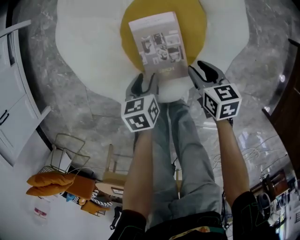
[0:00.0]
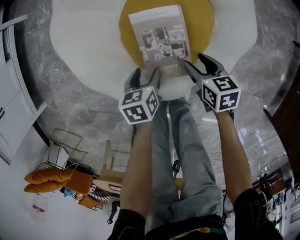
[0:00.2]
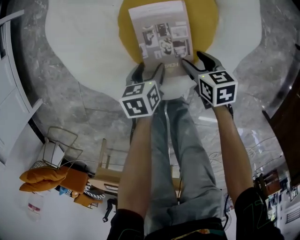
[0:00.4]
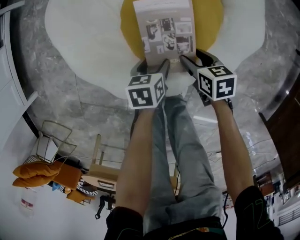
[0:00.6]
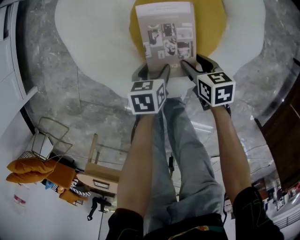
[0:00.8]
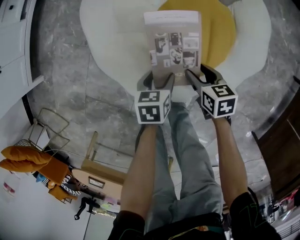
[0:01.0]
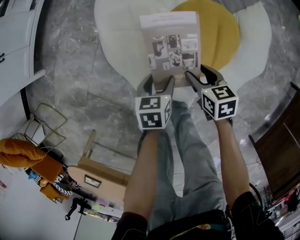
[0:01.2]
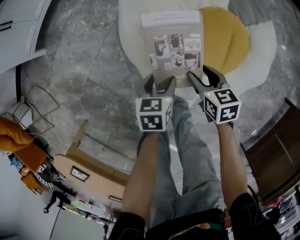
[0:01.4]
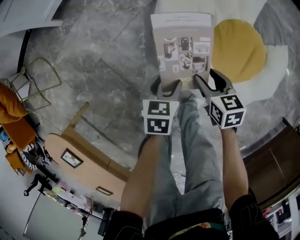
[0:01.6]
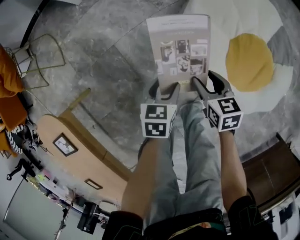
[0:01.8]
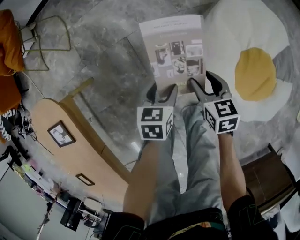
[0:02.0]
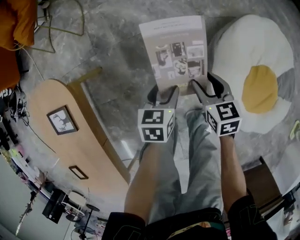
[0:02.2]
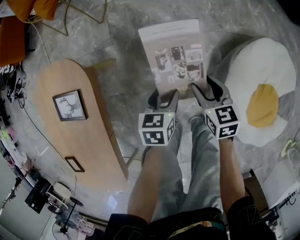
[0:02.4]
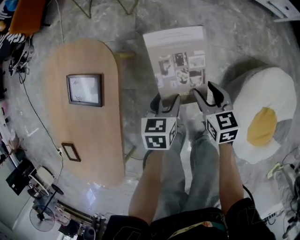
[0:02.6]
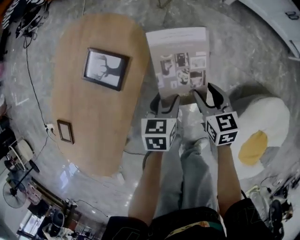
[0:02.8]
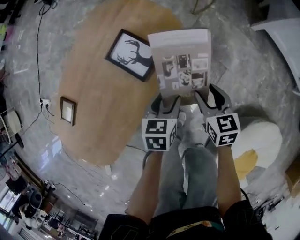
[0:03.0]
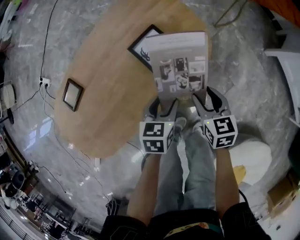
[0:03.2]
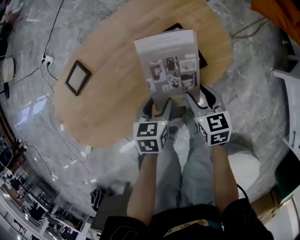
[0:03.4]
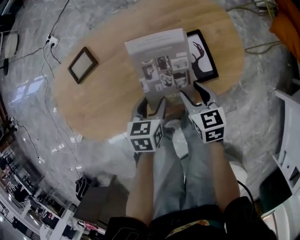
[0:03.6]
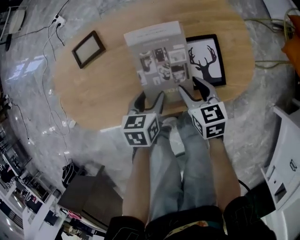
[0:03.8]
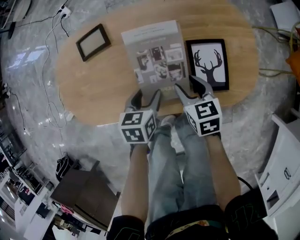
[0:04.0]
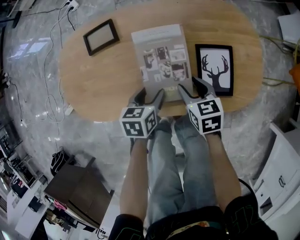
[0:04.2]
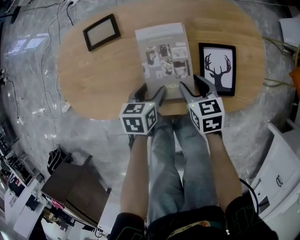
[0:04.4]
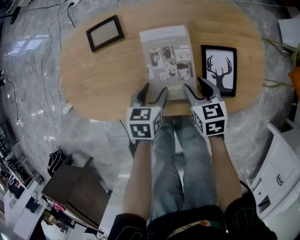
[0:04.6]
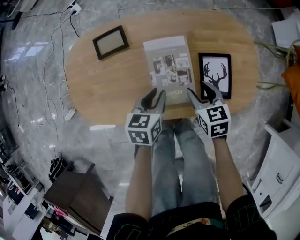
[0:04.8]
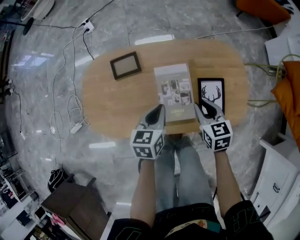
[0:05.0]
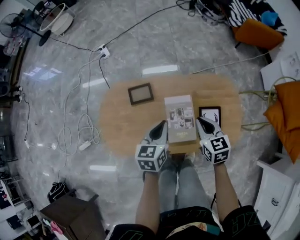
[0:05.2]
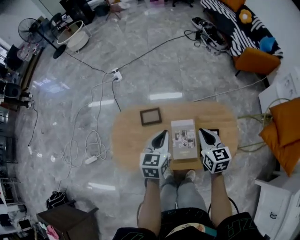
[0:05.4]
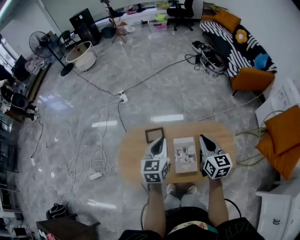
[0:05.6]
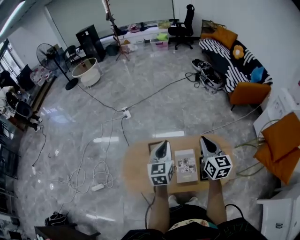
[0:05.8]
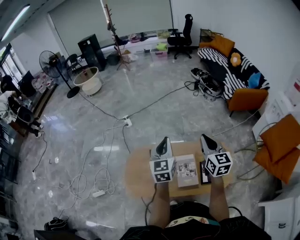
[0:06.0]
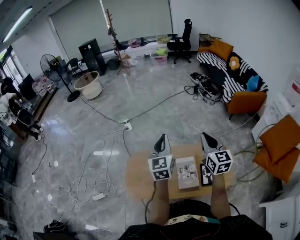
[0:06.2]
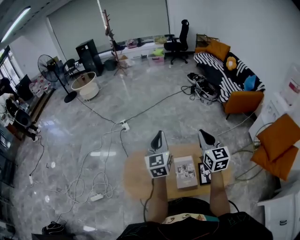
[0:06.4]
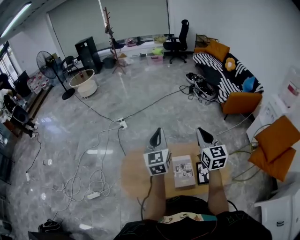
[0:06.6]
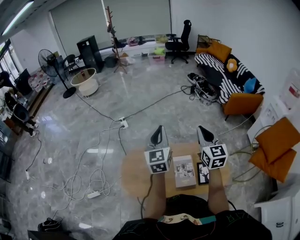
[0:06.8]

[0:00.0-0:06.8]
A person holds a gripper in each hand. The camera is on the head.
0.0 to 1.4 s: The left gripper shifts roughly 10 cm to the left and upward. Meanwhile the right gripper is displaced to the left by approximately 15 cm, and changes its angle by some 30 degrees.
1.4 to 2.8 s: The right gripper swivels approximately 20 degrees; the left gripper turns by roughly 20 degrees.
2.8 to 4.0 s: The right gripper moves about 15 cm, and swivels approximately 30 degrees; the left gripper ends up roughly 15 cm from where it was, and changes its angle by some 30 degrees.
4.0 to 5.4 s: Both grippers travel together upward, some 30 cm. The right gripper closes. The left gripper turns by roughly 30 degrees, and closes up.
5.4 to 6.8 s: The two grippers go roughly 25 cm upward. The right gripper rotates roughly 30 degrees; the left gripper rotates about 30 degrees.

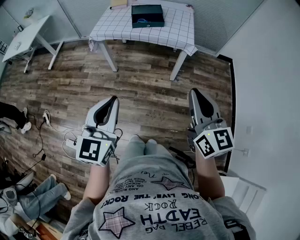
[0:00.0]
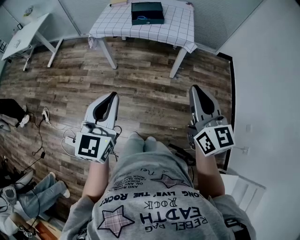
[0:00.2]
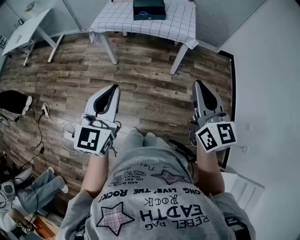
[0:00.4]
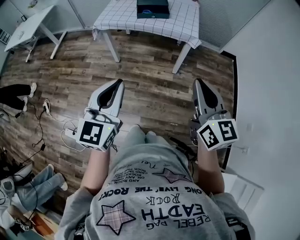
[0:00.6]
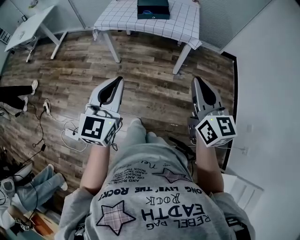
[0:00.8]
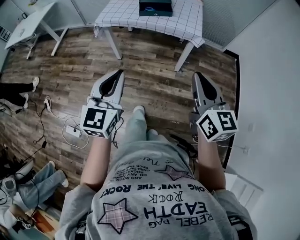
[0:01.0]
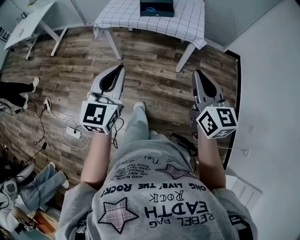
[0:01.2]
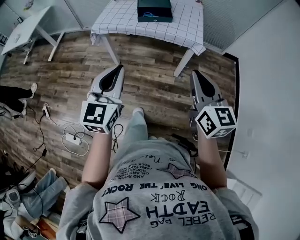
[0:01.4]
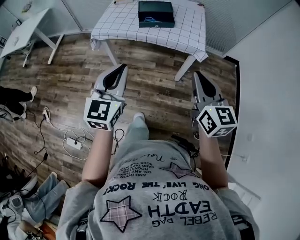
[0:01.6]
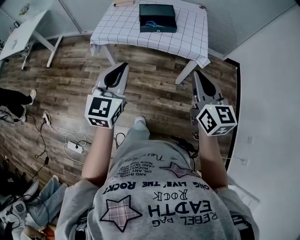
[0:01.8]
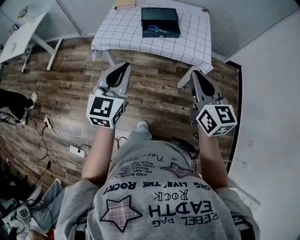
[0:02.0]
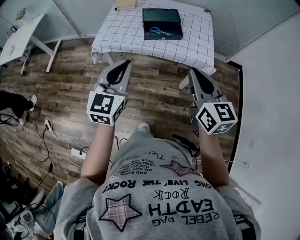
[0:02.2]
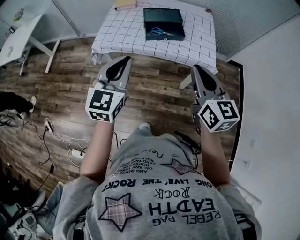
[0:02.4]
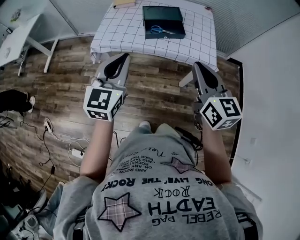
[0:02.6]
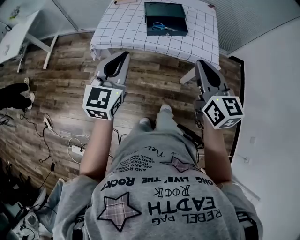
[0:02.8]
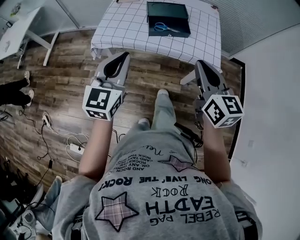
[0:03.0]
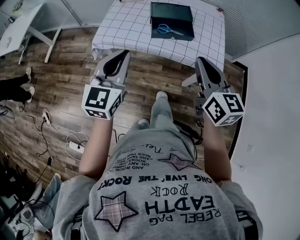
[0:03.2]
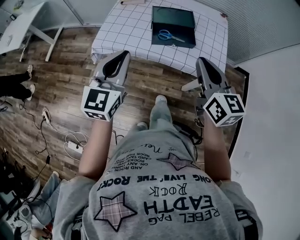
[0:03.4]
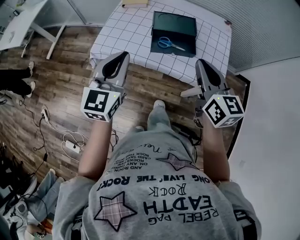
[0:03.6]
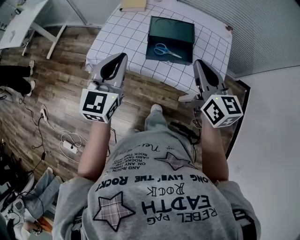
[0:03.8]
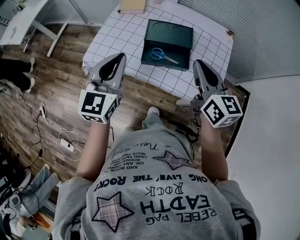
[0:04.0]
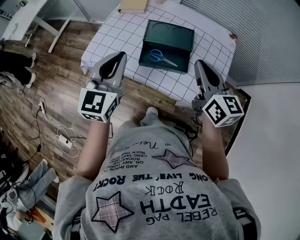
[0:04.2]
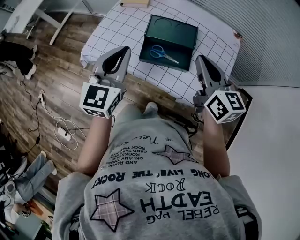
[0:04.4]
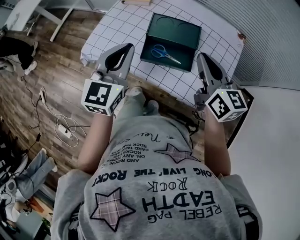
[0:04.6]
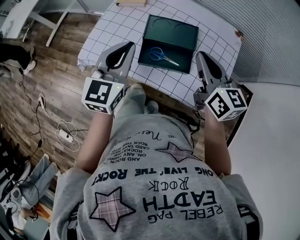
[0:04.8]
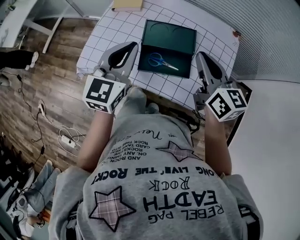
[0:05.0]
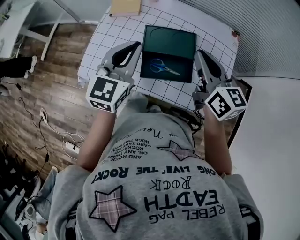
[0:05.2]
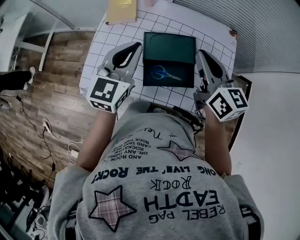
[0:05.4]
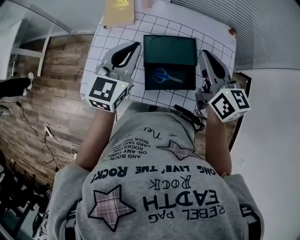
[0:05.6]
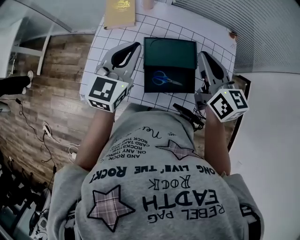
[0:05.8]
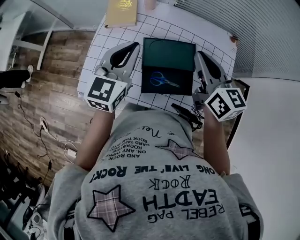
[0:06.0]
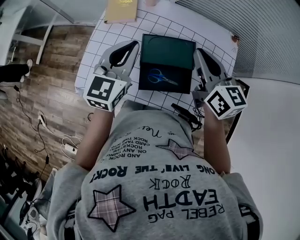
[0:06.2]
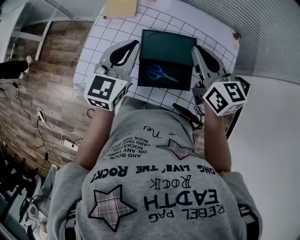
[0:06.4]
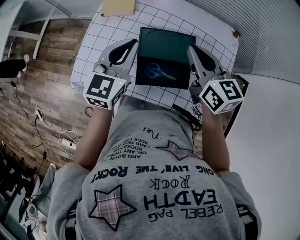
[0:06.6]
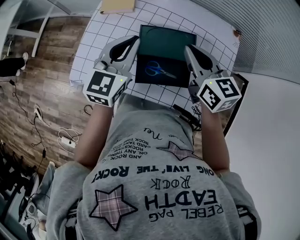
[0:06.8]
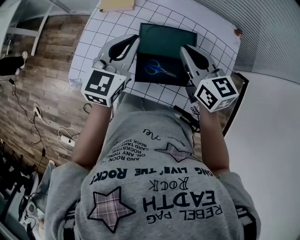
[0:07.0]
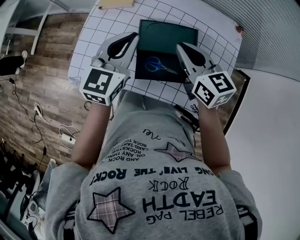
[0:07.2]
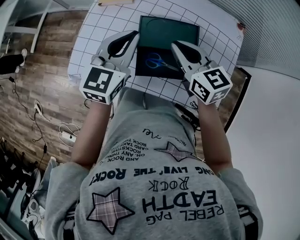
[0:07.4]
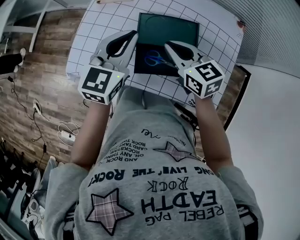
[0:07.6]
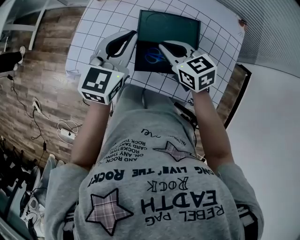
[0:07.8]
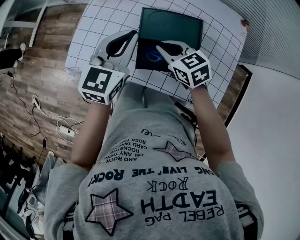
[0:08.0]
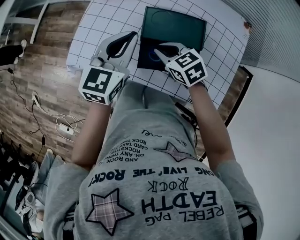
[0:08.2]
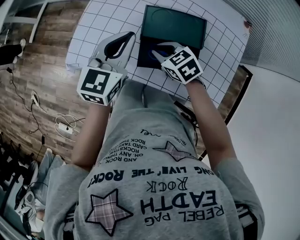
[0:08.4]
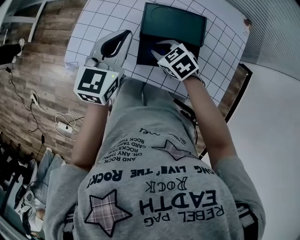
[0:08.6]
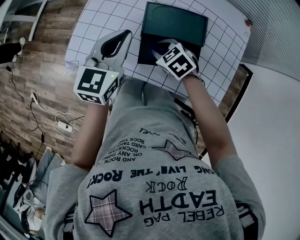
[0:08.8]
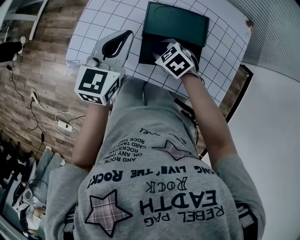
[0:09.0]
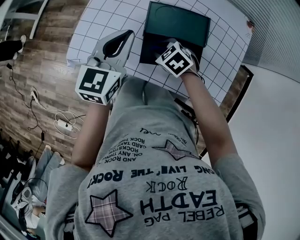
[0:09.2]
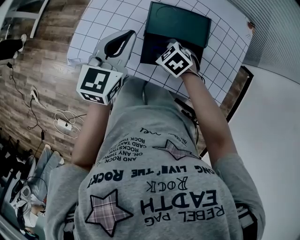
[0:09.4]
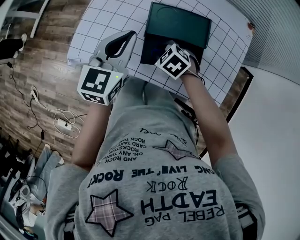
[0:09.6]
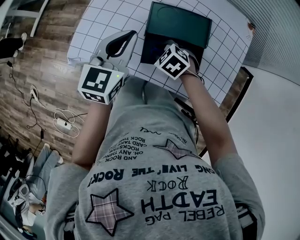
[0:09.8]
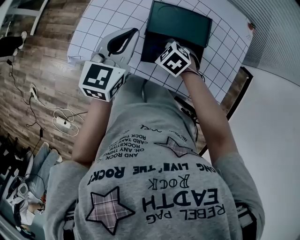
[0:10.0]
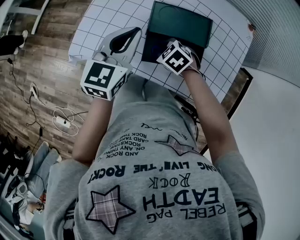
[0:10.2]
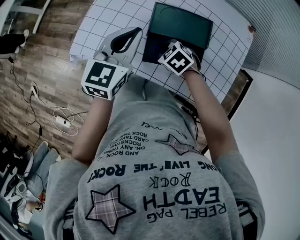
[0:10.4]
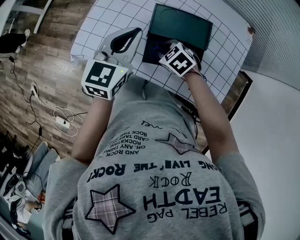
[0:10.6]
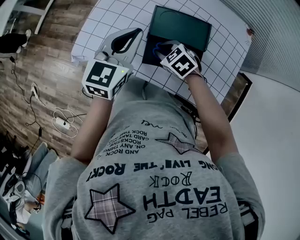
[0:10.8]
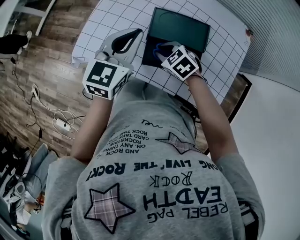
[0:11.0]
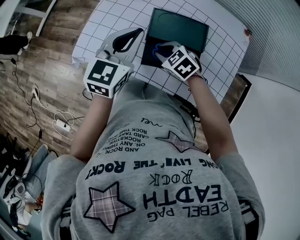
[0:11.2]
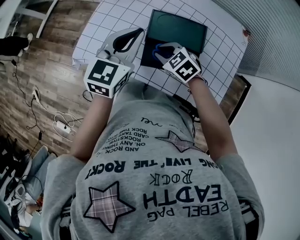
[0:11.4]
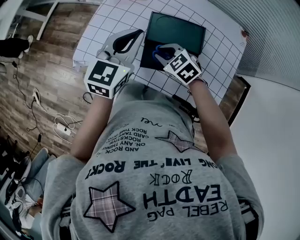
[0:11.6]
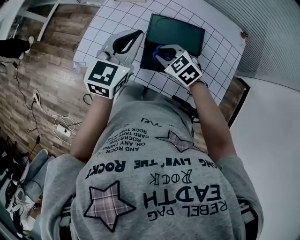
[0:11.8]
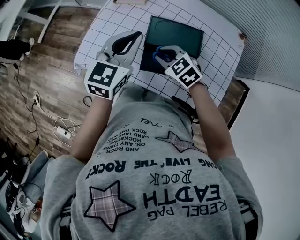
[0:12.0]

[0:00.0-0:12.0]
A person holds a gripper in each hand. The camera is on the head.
0.0 to 1.6 s: Both grippers move forward, about 20 cm.
1.6 to 3.0 s: Both grippers travel together forward and to the left, roughly 20 cm.
3.0 to 4.4 s: Both grippers move forward, about 25 cm.
4.4 to 6.0 s: The grippers both shift forward by roughly 15 cm.
6.0 to 7.6 s: The left gripper changes place by about 5 cm, while the right gripper shifts roughly 15 cm downward and to the left, and changes its angle by roughly 30 degrees.
7.6 to 9.0 s: The right gripper is displaced downward and to the left by about 15 cm, angles its fingers downward, by about 30 degrees, and opens up; the left gripper changes place by approximately 5 cm.
9.0 to 10.4 s: There are only small adjustments of the grippers.
10.4 to 12.0 s: The right gripper is displaced upward by roughly 10 cm.

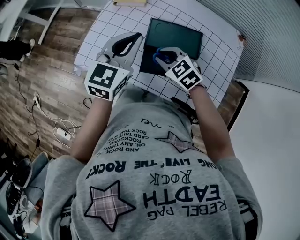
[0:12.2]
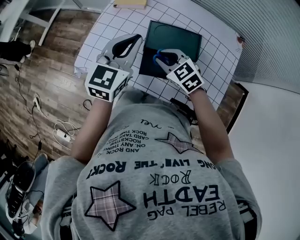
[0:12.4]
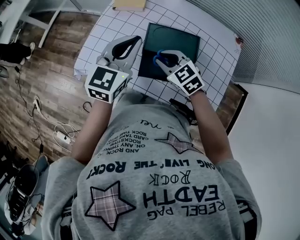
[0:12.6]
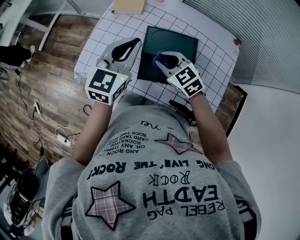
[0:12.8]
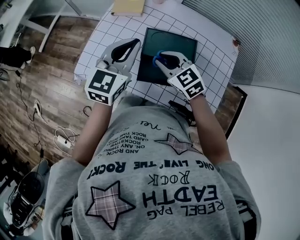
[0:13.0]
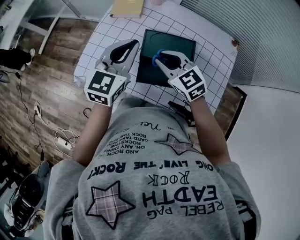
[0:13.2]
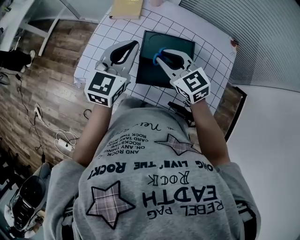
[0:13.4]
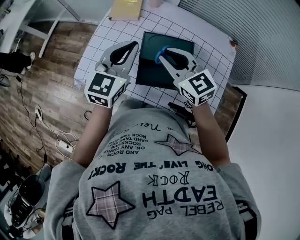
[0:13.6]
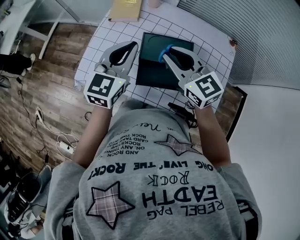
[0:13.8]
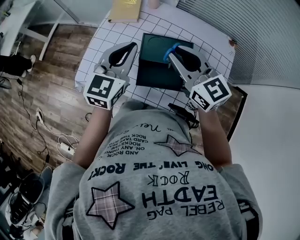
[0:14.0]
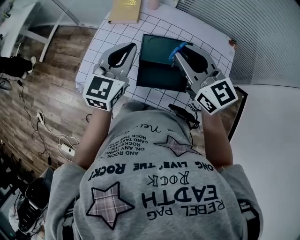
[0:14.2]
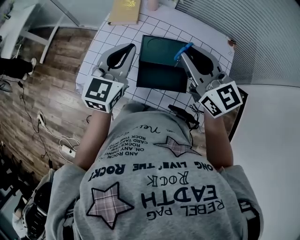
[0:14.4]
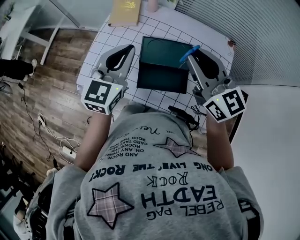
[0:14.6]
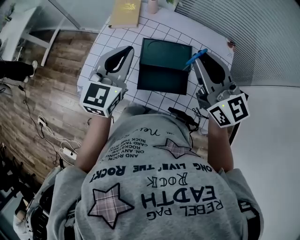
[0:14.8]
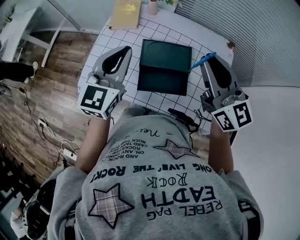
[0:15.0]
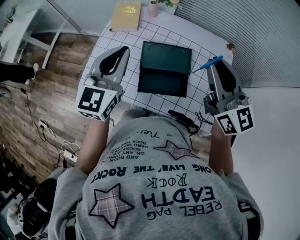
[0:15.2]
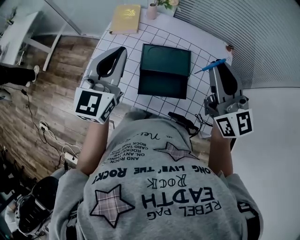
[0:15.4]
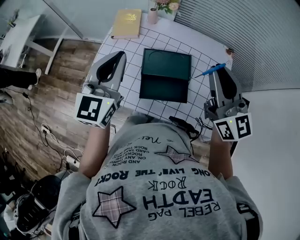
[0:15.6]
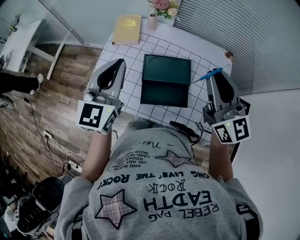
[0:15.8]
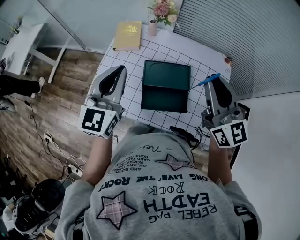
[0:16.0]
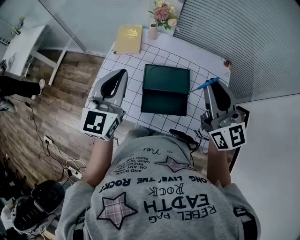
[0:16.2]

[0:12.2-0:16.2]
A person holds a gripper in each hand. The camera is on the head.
12.2 to 13.6 s: The right gripper moves upward, approximately 15 cm, and turns by roughly 30 degrees.
13.6 to 14.8 s: The right gripper moves upward and to the right, some 15 cm, and changes its angle by about 20 degrees.
14.8 to 16.2 s: The right gripper changes place by approximately 5 cm. Meanwhile the left gripper travels upward by roughly 5 cm.

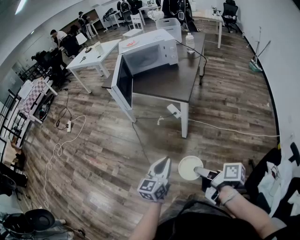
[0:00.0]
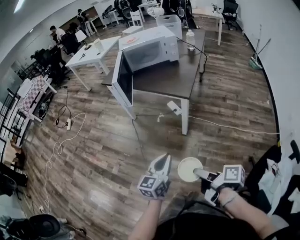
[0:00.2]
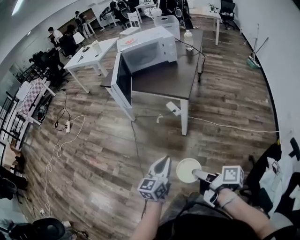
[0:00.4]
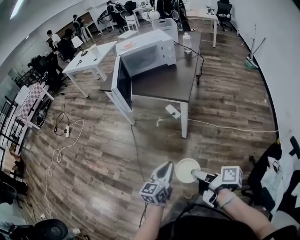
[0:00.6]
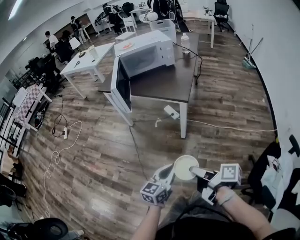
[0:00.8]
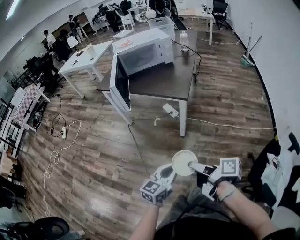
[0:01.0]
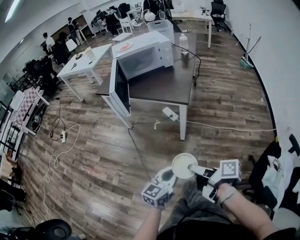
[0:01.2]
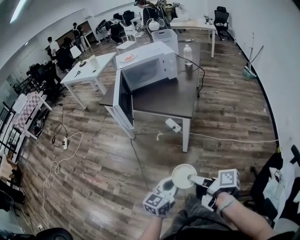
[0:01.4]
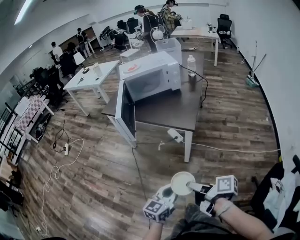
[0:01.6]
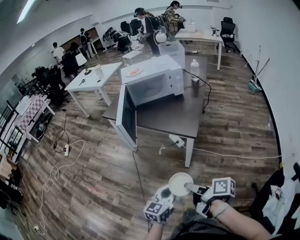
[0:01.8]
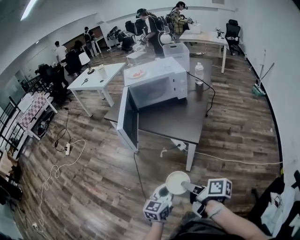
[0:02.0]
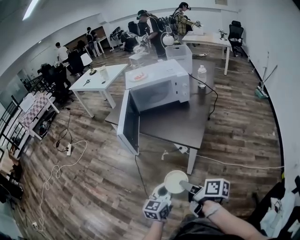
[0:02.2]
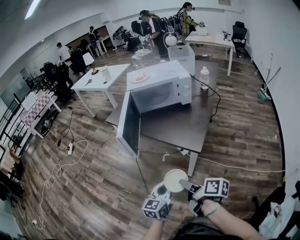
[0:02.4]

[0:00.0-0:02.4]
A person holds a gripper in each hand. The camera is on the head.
0.0 to 1.2 s: The left gripper rotates approximately 20 degrees, while the right gripper goes some 5 cm to the left.
1.2 to 2.4 s: Both grippers move forward, some 20 cm. The left gripper rotates about 20 degrees.
